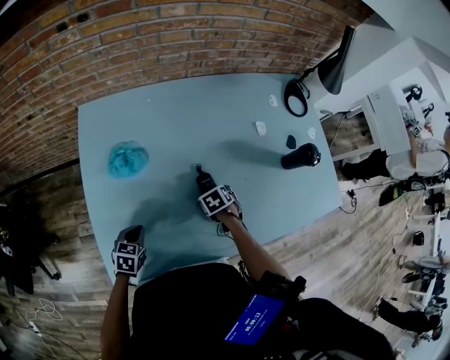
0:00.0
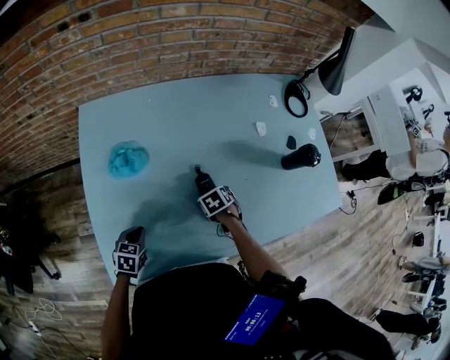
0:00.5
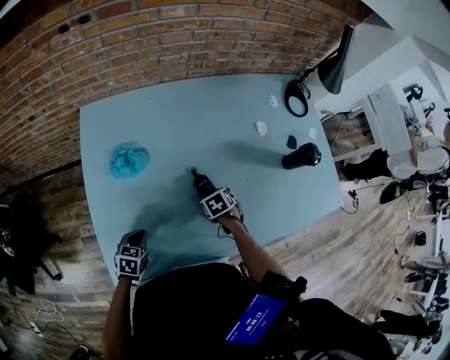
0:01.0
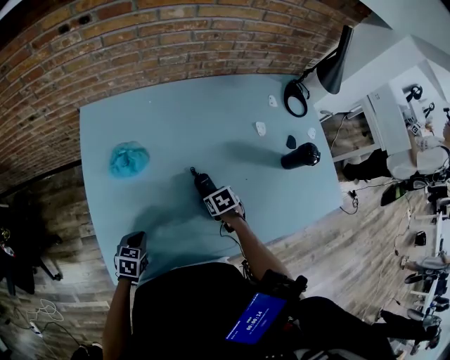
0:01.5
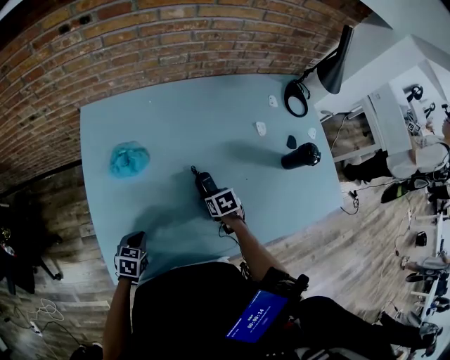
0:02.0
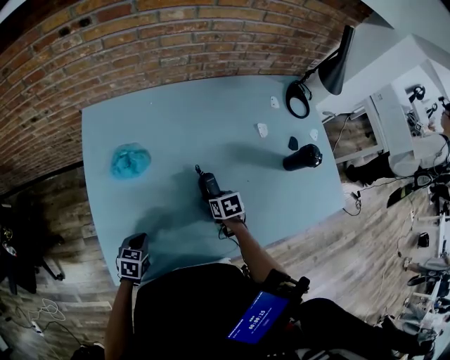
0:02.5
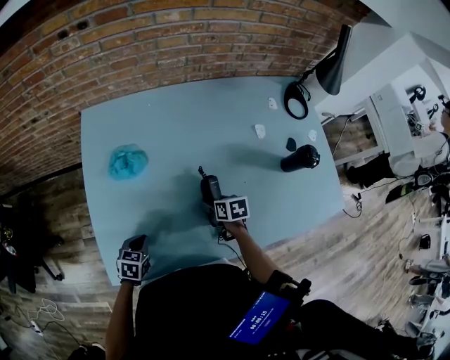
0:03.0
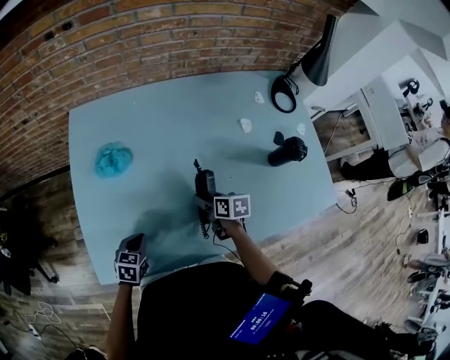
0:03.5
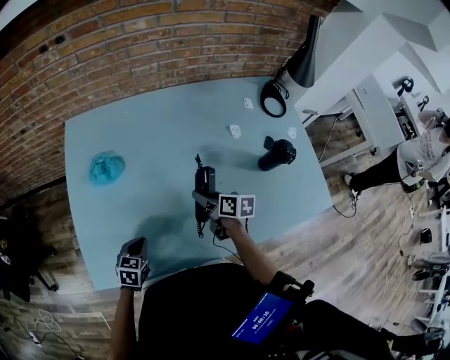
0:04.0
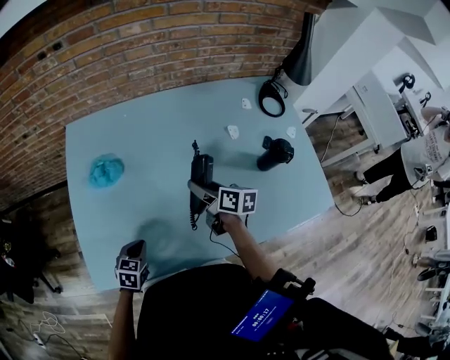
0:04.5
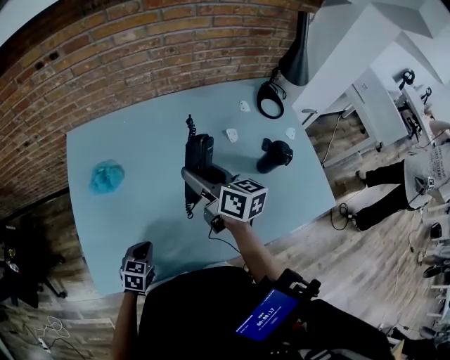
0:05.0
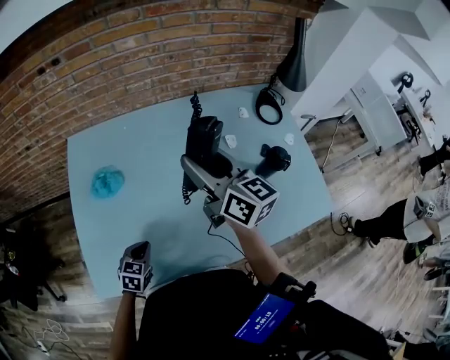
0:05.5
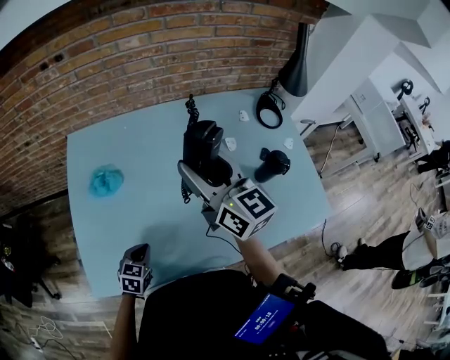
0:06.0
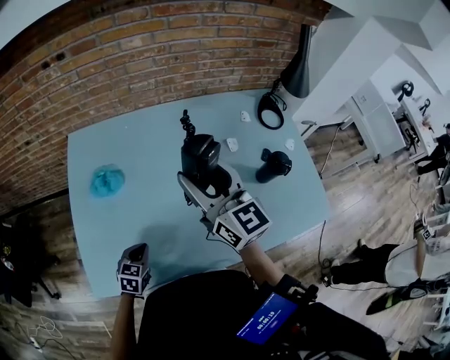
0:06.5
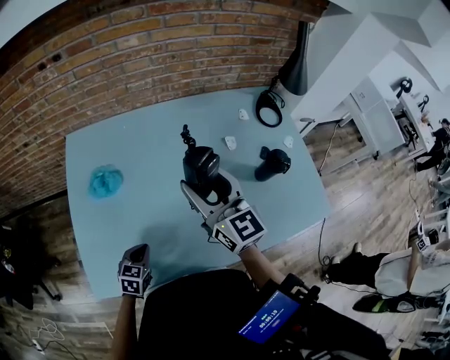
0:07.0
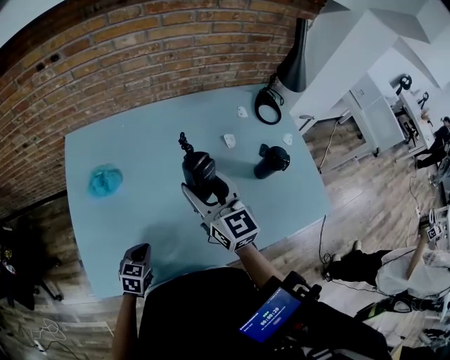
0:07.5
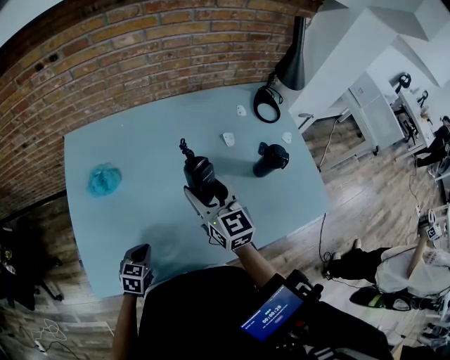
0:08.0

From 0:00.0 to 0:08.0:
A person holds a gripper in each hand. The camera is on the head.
From 0:00.0 to 0:02.0: The grippers move only a little.
From 0:02.0 to 0:04.0: The left gripper goes some 10 cm to the right, while the right gripper travels upward and to the right by some 10 cm, and points its fingers approximately 30 degrees further upward.
From 0:04.0 to 0:06.0: The right gripper shifts some 30 cm upward, and points its fingers approximately 40 degrees further upward.
From 0:06.0 to 0:08.0: The right gripper goes approximately 10 cm downward.

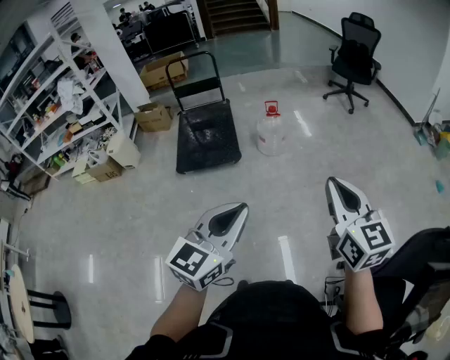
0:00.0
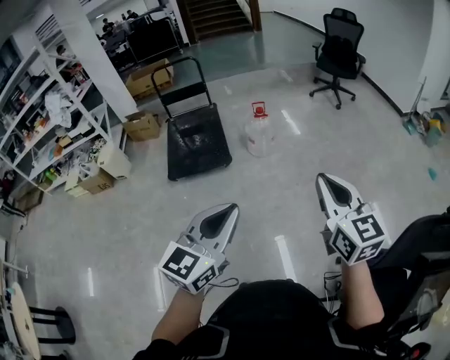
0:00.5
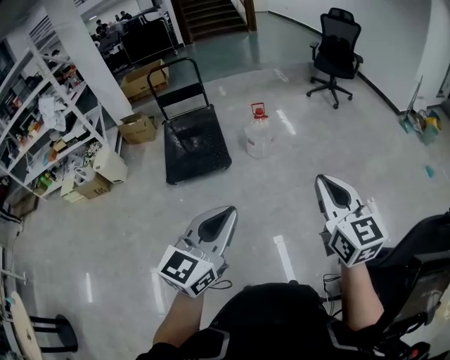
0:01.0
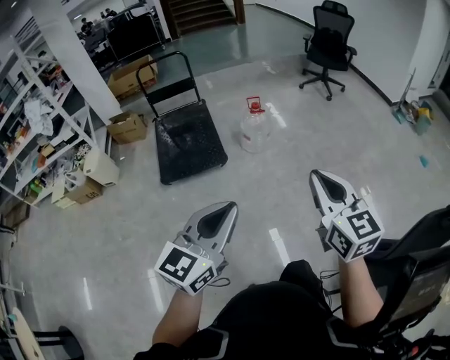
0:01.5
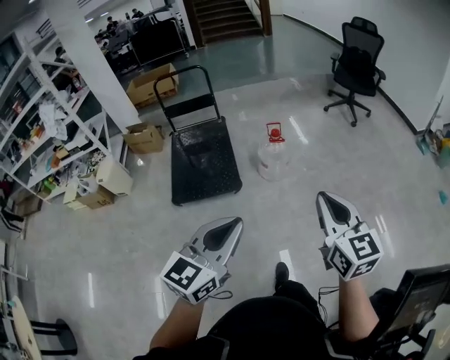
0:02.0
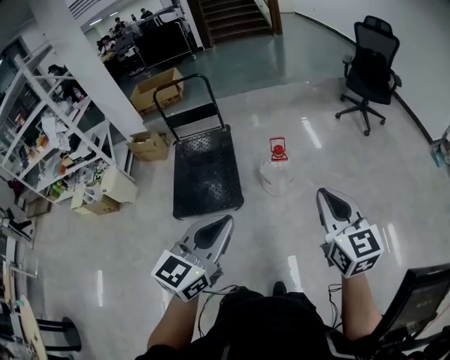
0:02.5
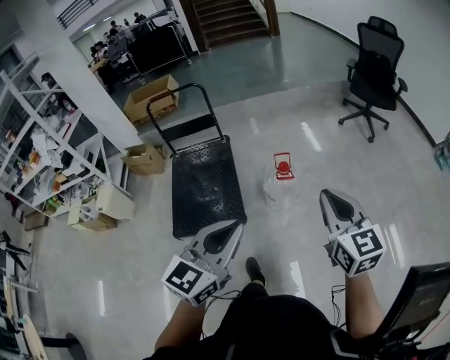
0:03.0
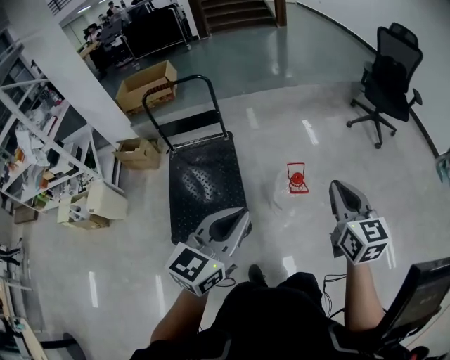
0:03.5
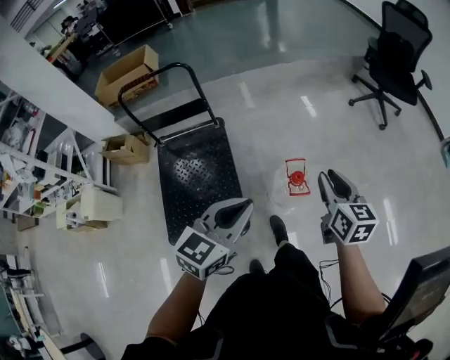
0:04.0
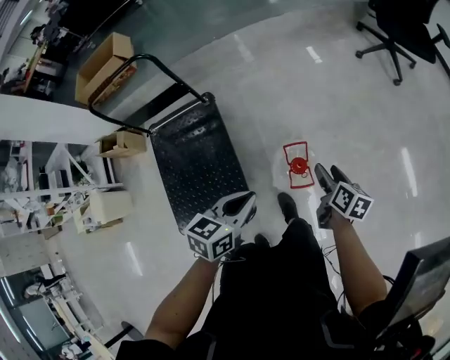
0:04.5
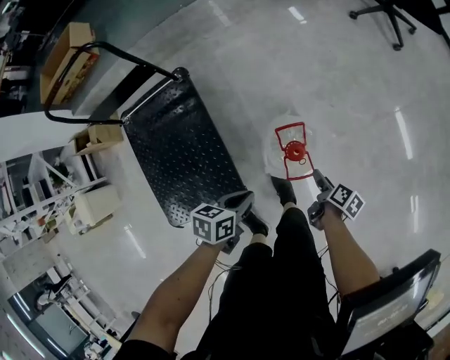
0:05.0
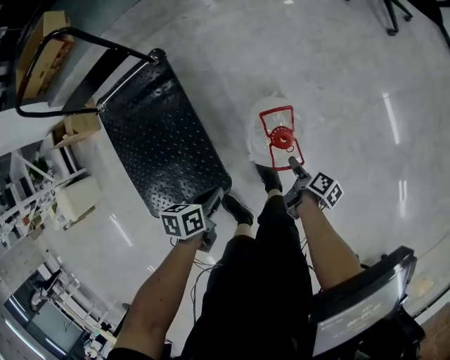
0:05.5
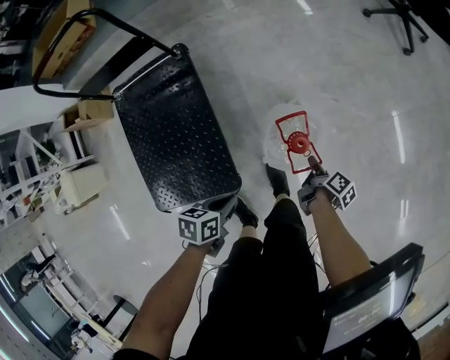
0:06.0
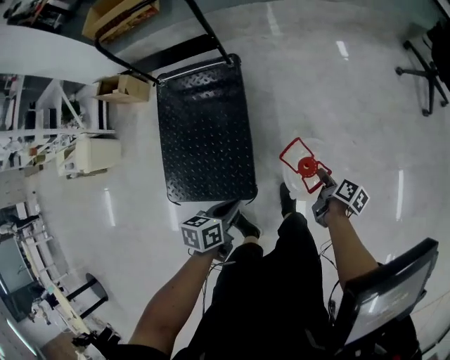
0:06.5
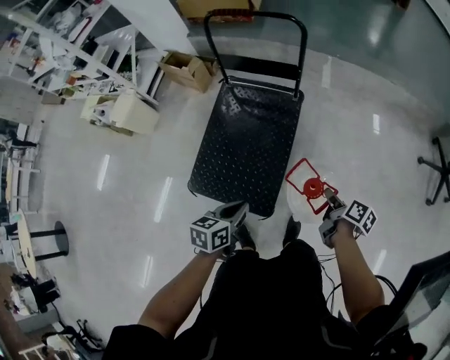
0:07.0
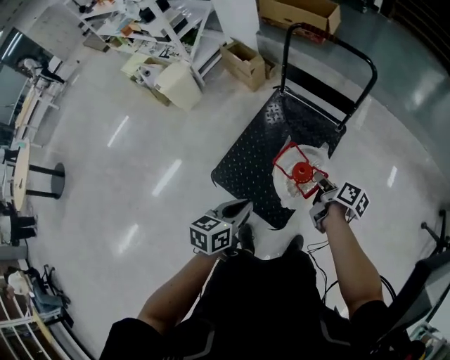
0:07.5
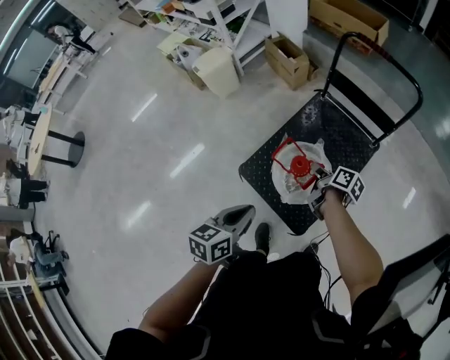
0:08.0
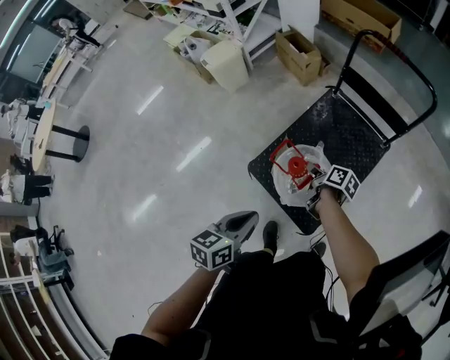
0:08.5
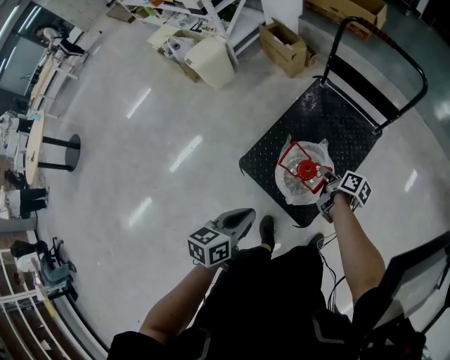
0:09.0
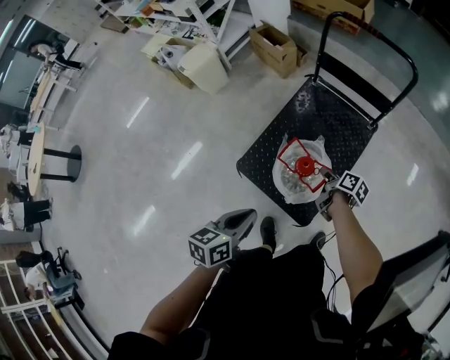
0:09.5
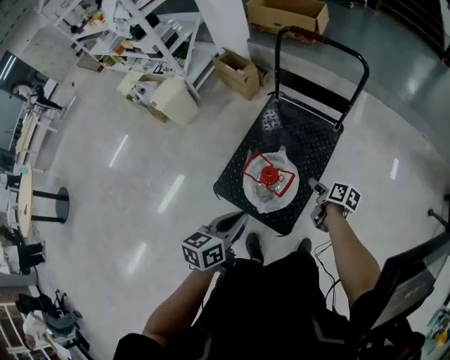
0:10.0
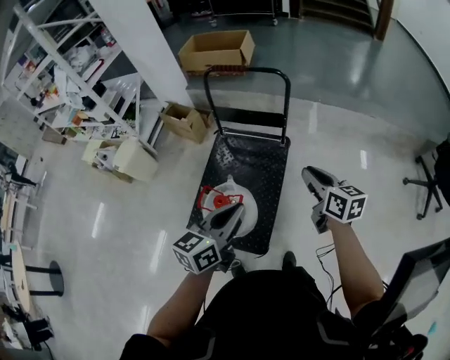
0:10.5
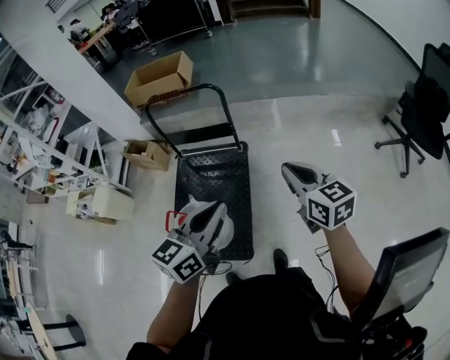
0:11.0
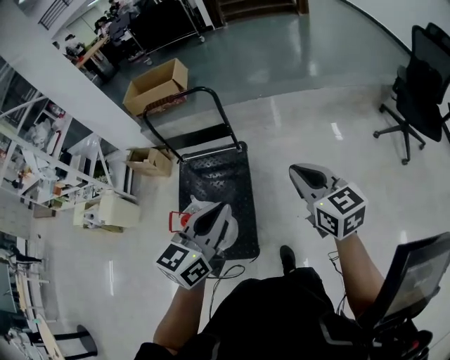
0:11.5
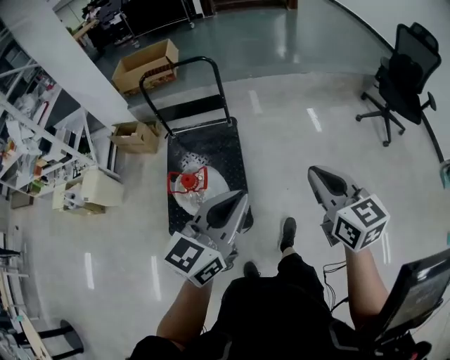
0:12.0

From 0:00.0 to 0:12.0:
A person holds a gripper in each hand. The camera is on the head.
From 0:00.0 to 0:02.0: The grippers both shift forward and to the left by approximately 25 cm.
From 0:02.0 to 0:04.0: The two grippers travel together, forward, about 70 cm. The right gripper turns by roughly 20 degrees.
From 0:04.0 to 0:06.0: Both grippers move downward, some 40 cm. The left gripper angles its fingers downward, by approximately 30 degrees. The right gripper twists approximately 70 degrees clockwise, seen from behind, and opens, then closes again.
From 0:06.0 to 0:08.0: Both grippers are carried some 50 cm. The right gripper changes its angle by approximately 80 degrees. Meanwhile the left gripper changes its angle by about 70 degrees.
From 0:08.0 to 0:10.0: The right gripper heads to the right and backward, covering approximately 15 cm, and opens up. The left gripper goes roughly 5 cm to the right.
From 0:10.0 to 0:12.0: The right gripper heads upward, covering approximately 35 cm, turns by approximately 60 degrees, and closes. Meanwhile the left gripper shifts by some 35 cm, and changes its angle by about 50 degrees.

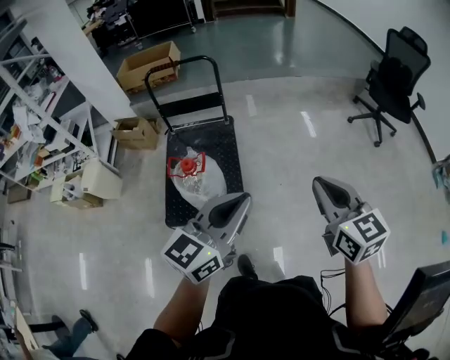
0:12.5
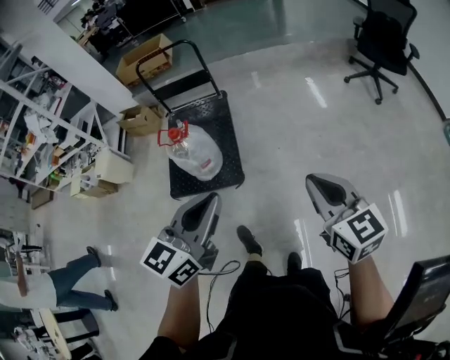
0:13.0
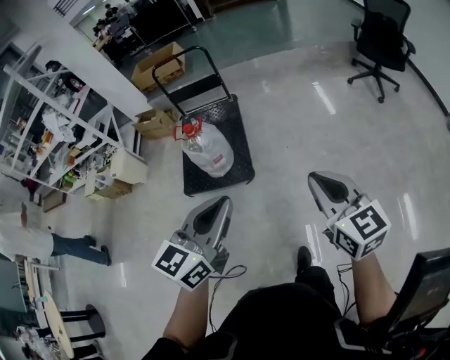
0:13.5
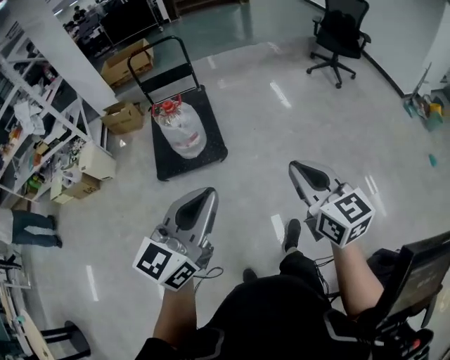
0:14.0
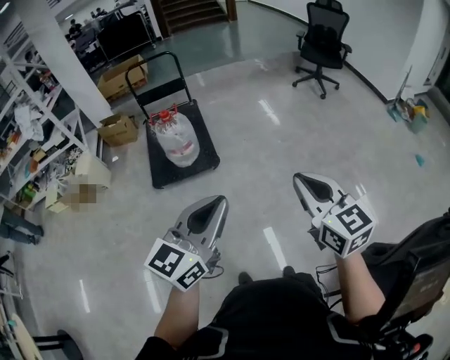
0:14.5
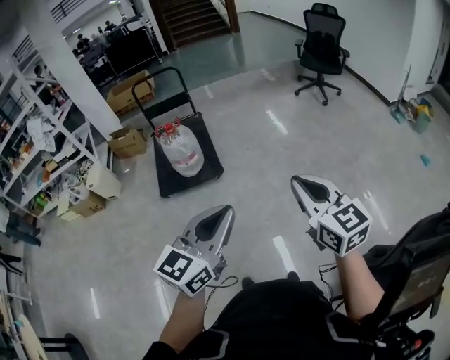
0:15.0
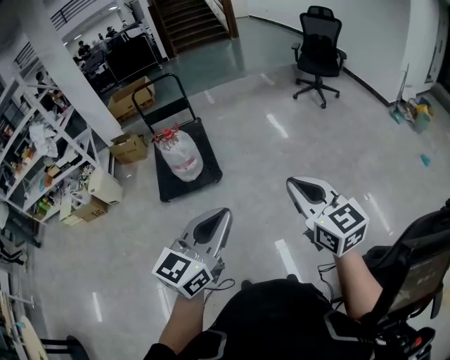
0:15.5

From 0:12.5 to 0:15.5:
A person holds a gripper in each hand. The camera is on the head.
From 0:12.5 to 0:14.0: Both grippers are carried backward, some 50 cm.
From 0:14.0 to 0:15.5: The right gripper heads backward, to the right and upward, covering some 20 cm, while the left gripper is displaced backward and to the right by roughly 20 cm.

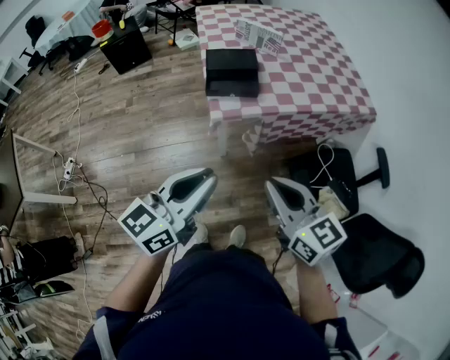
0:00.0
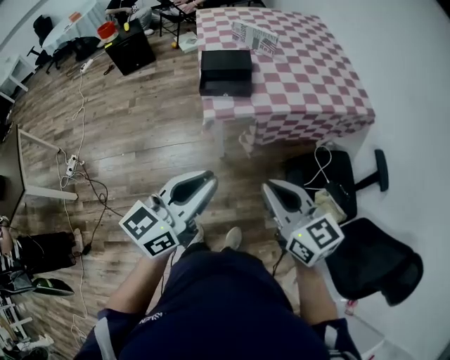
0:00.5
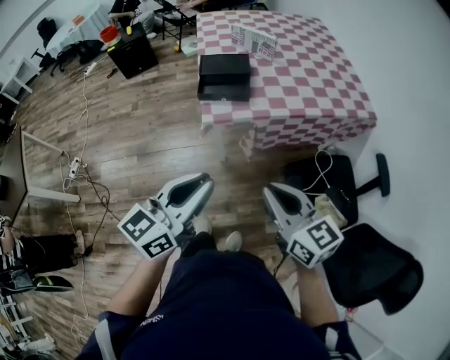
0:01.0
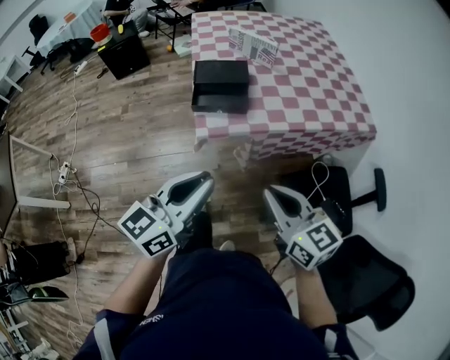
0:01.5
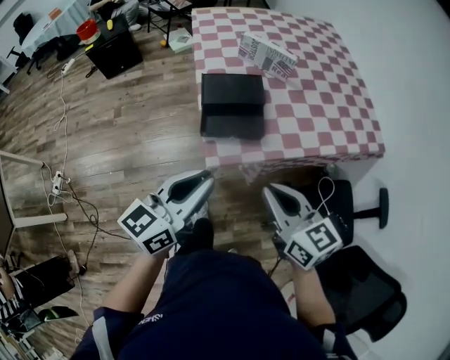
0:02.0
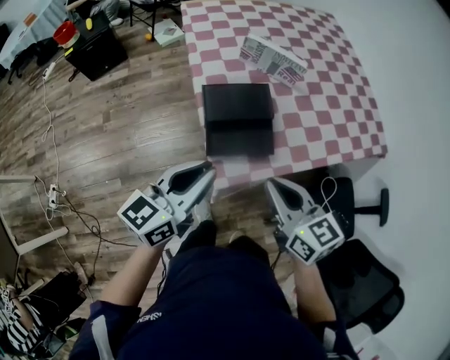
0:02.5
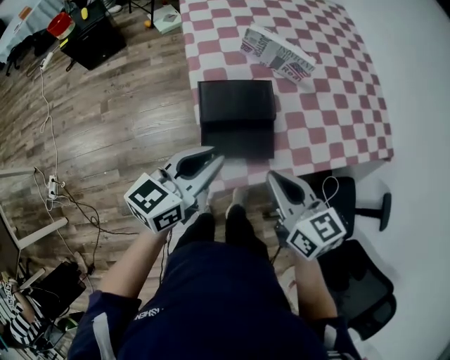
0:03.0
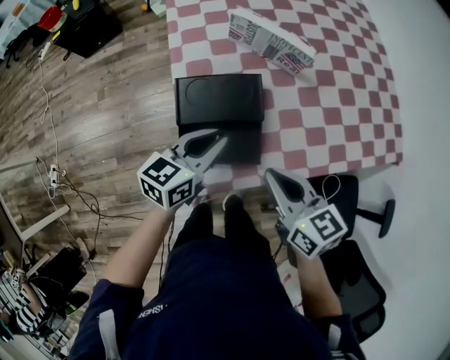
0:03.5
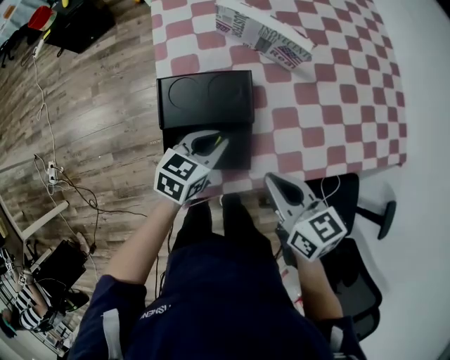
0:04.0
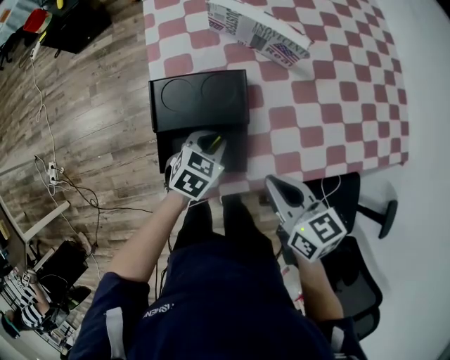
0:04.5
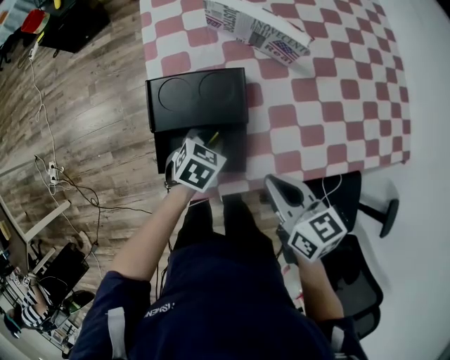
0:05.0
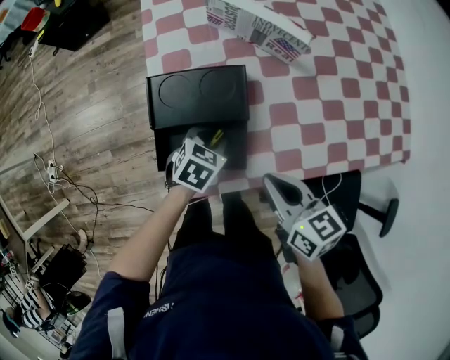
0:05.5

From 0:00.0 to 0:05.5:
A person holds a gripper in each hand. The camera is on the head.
From 0:00.0 to 0:02.0: The two grippers go about 25 cm forward.
From 0:02.0 to 0:03.5: Both grippers travel together forward and downward, about 25 cm.
From 0:03.5 to 0:05.5: The right gripper heads downward, covering approximately 5 cm, while the left gripper goes roughly 15 cm downward, and tilts its fingers some 40 degrees downward.
